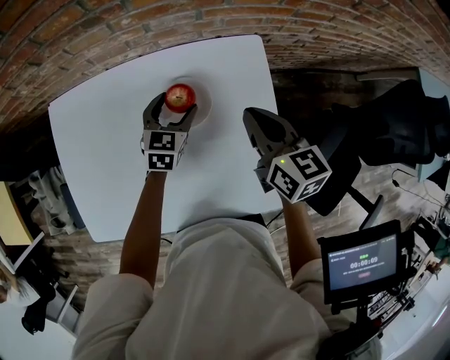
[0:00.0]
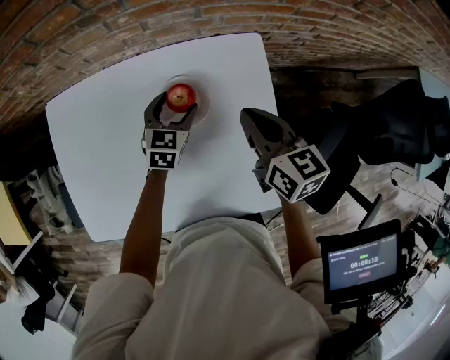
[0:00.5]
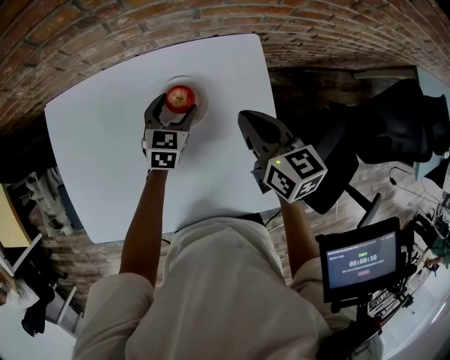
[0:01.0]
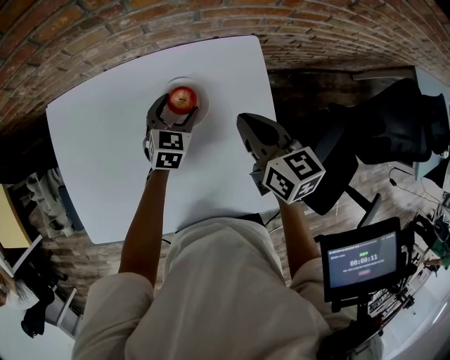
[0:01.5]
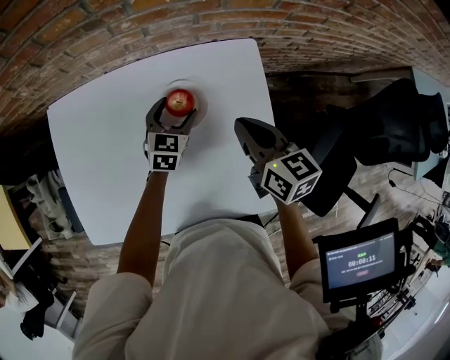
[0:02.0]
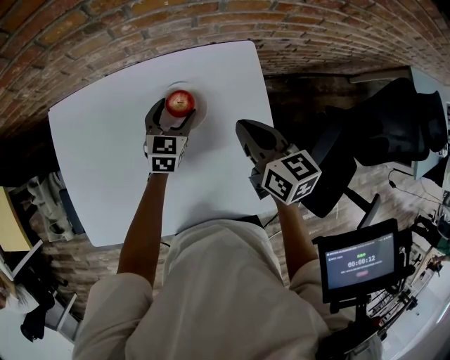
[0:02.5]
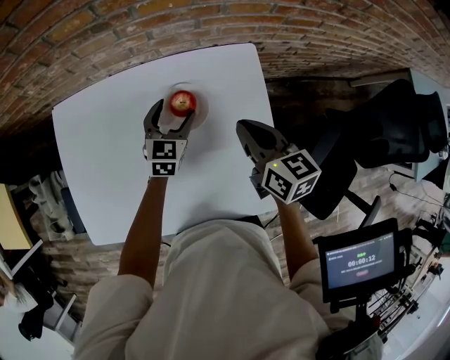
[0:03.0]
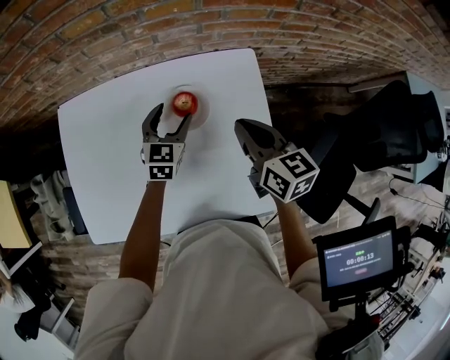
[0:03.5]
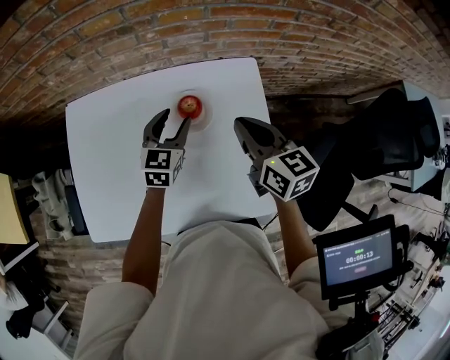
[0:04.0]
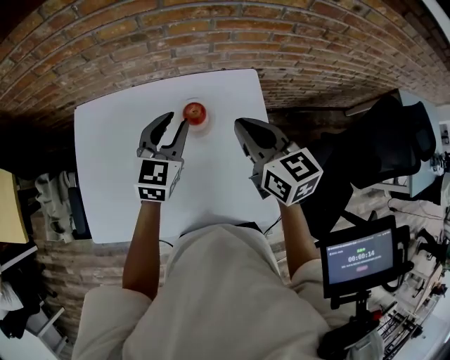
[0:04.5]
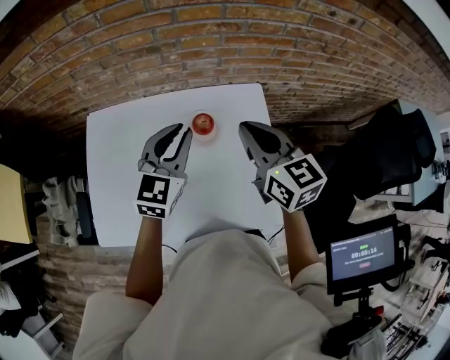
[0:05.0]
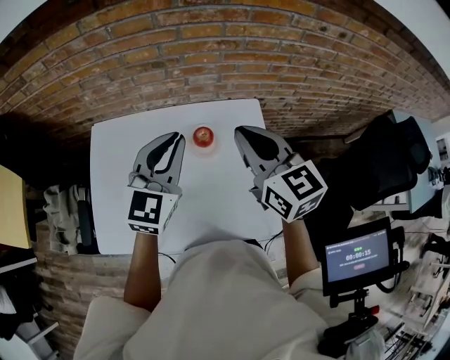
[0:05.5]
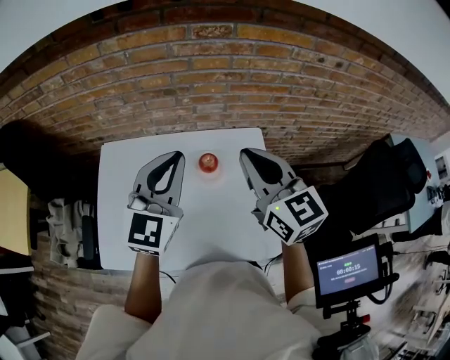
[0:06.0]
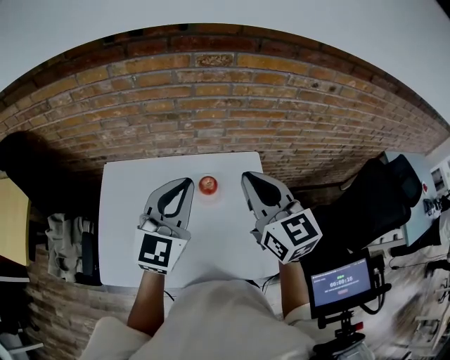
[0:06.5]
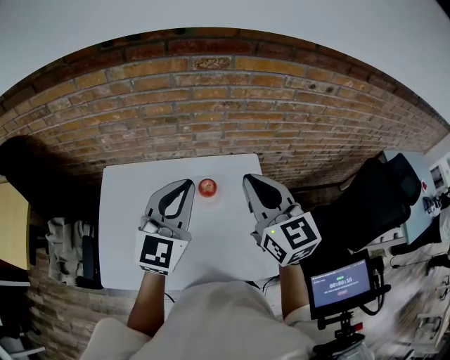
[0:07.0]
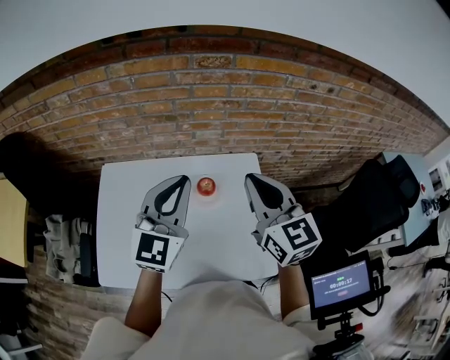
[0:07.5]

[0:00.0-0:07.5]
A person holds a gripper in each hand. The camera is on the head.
0:00.0 to 0:02.0: The grippers make only small movements.
0:02.0 to 0:04.0: The right gripper is displaced upward by approximately 5 cm. The left gripper is displaced upward by approximately 10 cm, and closes.
0:04.0 to 0:05.5: The two grippers go roughly 20 cm upward. The left gripper changes its angle by about 20 degrees, and closes its fingers.
0:05.5 to 0:07.5: The left gripper goes about 5 cm upward.

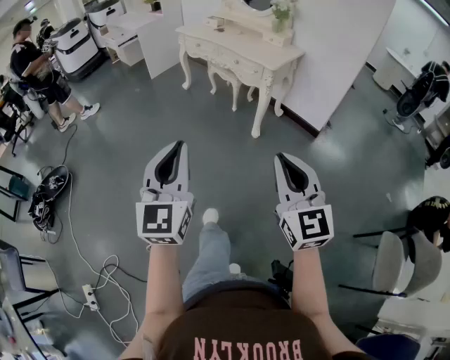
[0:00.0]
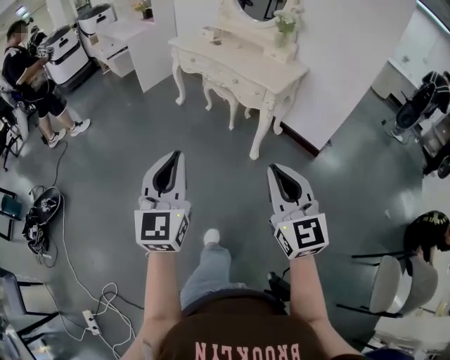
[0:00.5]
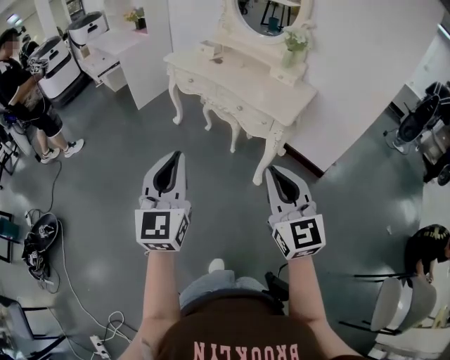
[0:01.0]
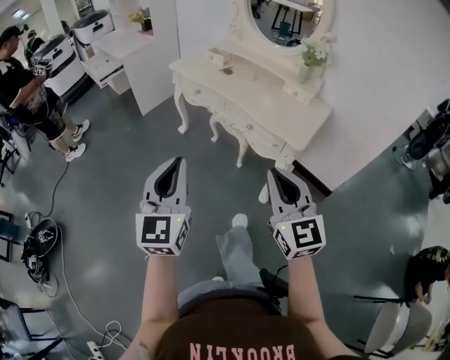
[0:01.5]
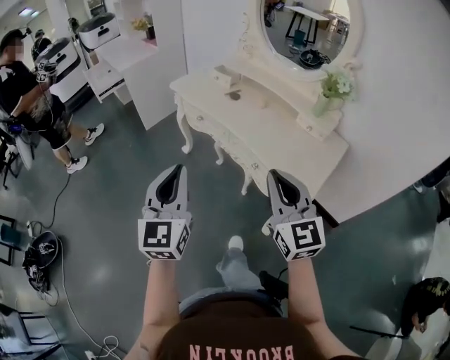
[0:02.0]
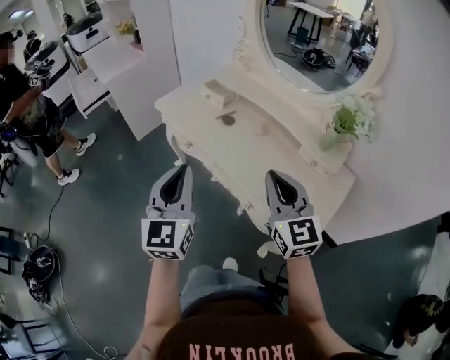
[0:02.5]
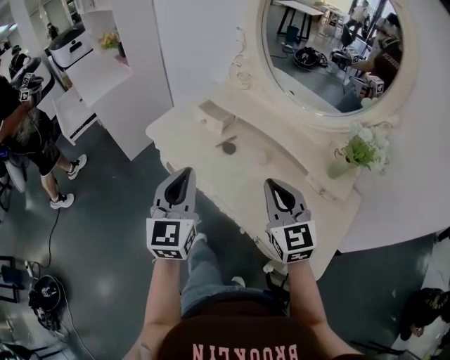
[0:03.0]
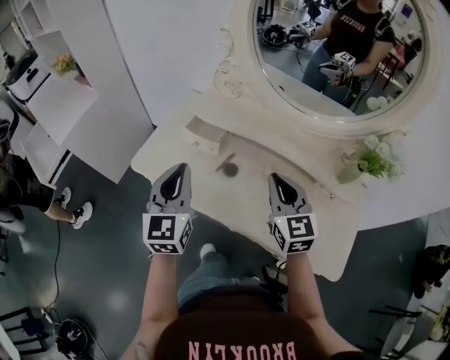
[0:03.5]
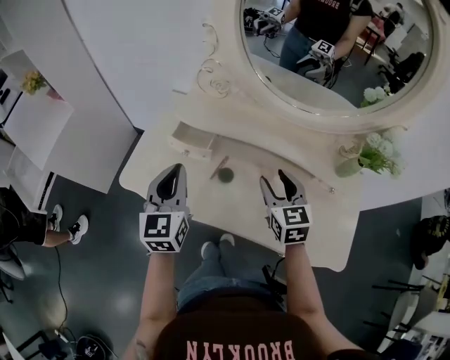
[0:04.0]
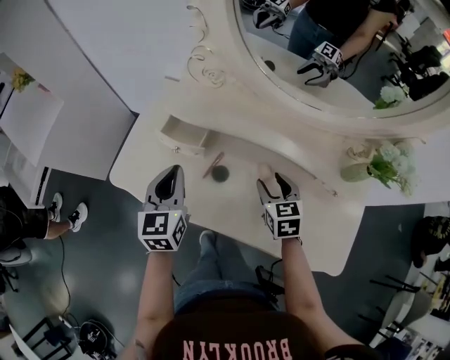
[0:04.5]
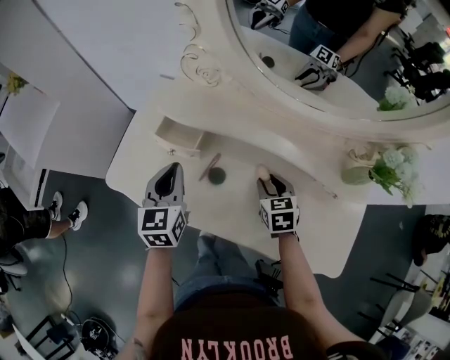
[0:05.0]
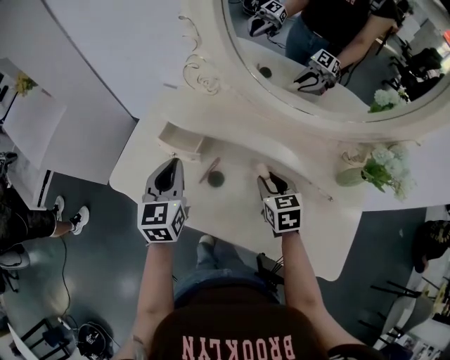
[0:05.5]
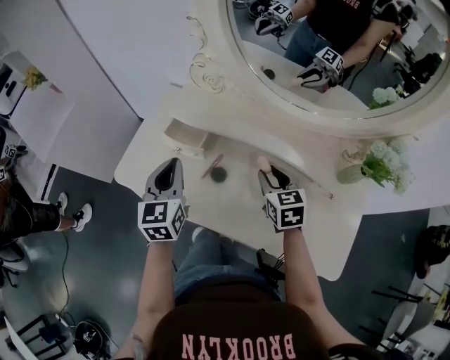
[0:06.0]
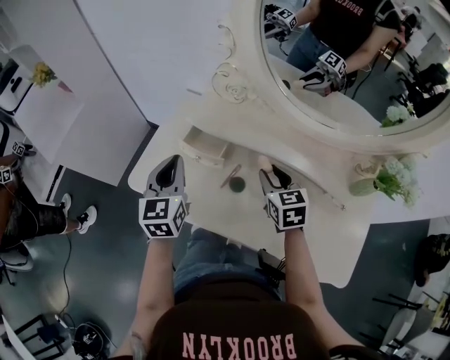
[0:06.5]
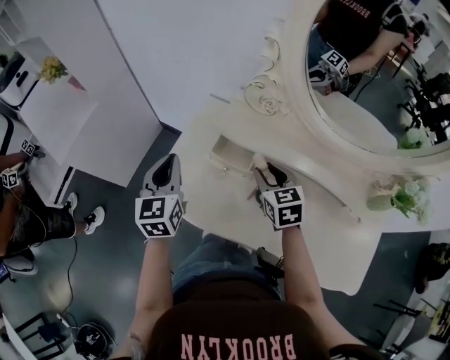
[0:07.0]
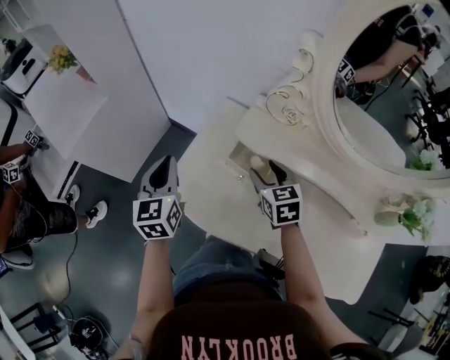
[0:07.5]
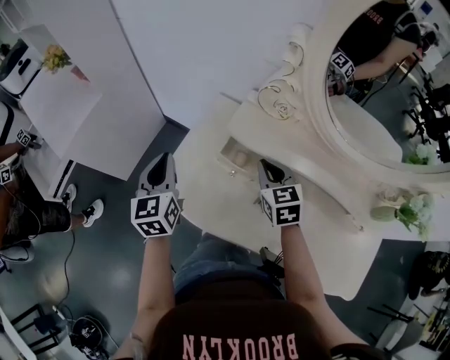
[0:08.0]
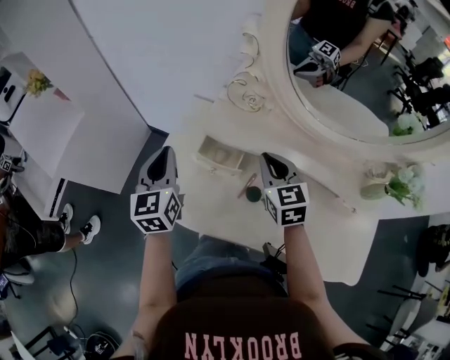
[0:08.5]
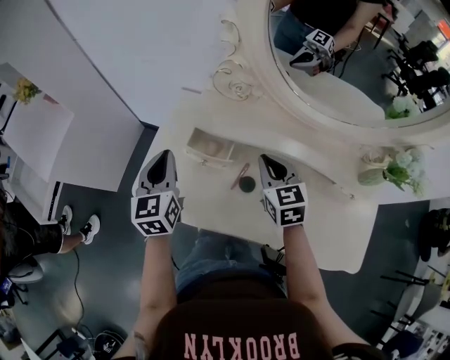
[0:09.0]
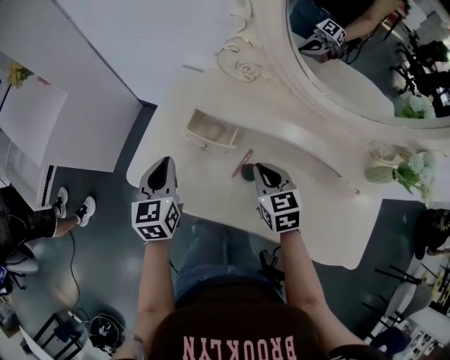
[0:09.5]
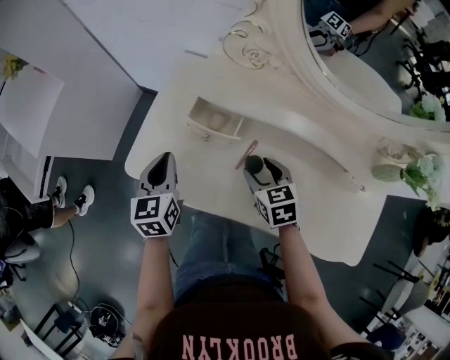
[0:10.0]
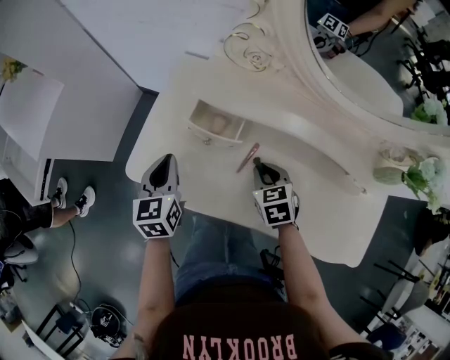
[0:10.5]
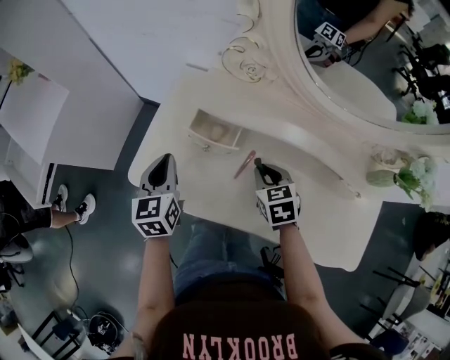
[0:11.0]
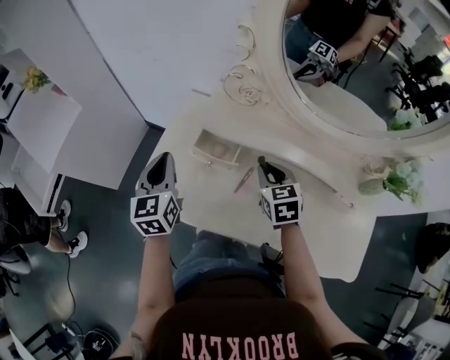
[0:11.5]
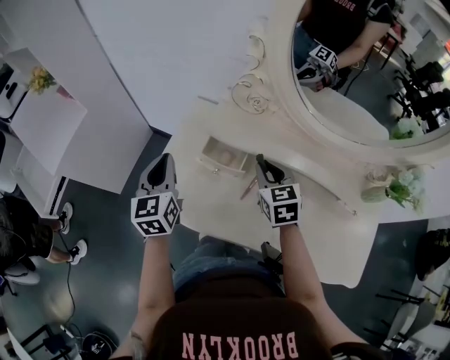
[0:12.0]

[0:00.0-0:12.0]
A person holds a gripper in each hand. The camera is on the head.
0:00.0 to 0:02.0: Both grippers are carried forward, some 70 cm.
0:02.0 to 0:04.0: Both grippers are carried some 60 cm. The right gripper swivels some 40 degrees, and opens up. The left gripper changes its angle by some 30 degrees.
0:04.0 to 0:06.0: The right gripper is displaced downward by approximately 5 cm.
0:06.0 to 0:08.0: Both grippers move to the left and forward, some 25 cm. The right gripper closes up.
0:08.0 to 0:10.0: The right gripper moves backward, downward and to the right, approximately 15 cm, and opens its fingers. Meanwhile the left gripper is displaced downward, to the right and backward by about 15 cm.
0:10.0 to 0:12.0: The two grippers go about 10 cm upward and forward. The right gripper closes up.

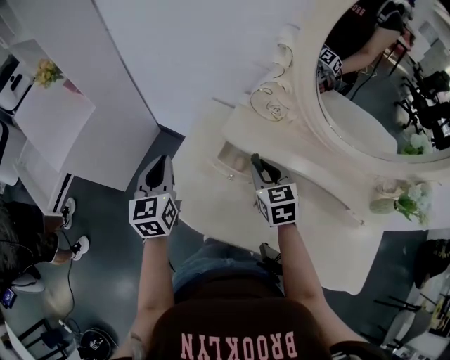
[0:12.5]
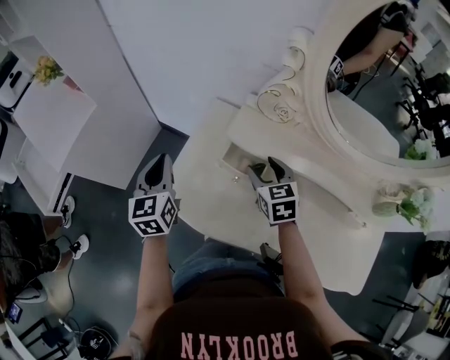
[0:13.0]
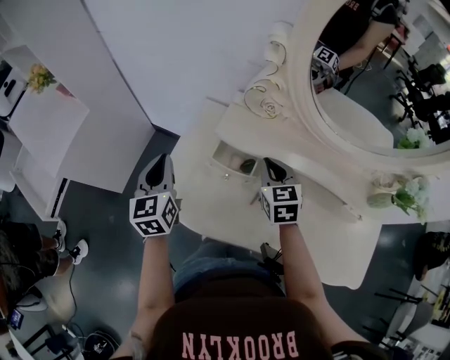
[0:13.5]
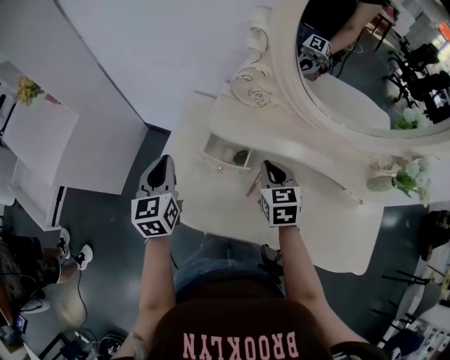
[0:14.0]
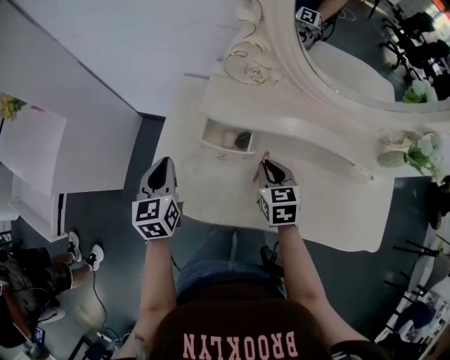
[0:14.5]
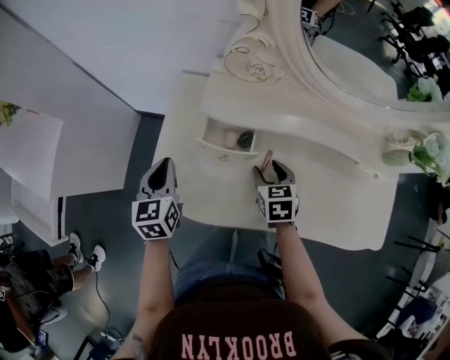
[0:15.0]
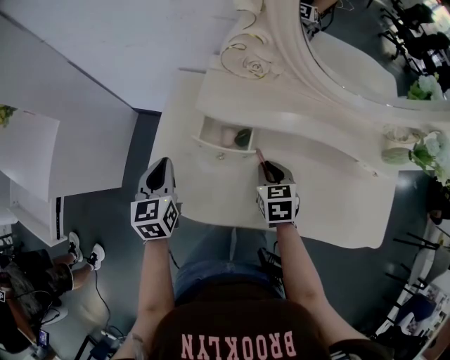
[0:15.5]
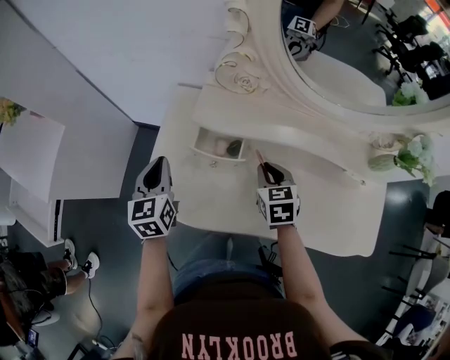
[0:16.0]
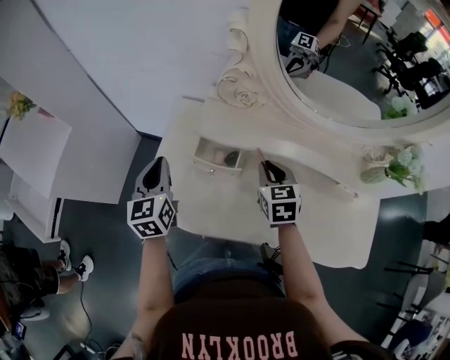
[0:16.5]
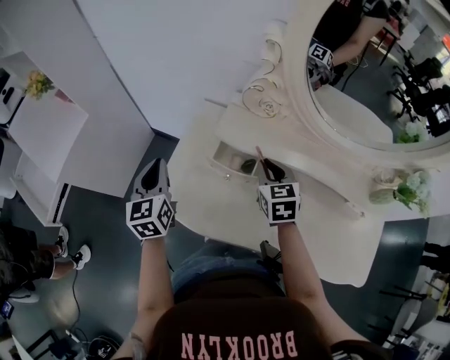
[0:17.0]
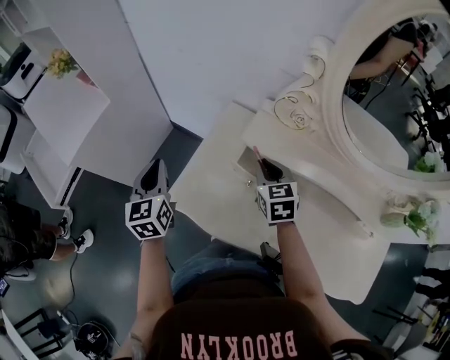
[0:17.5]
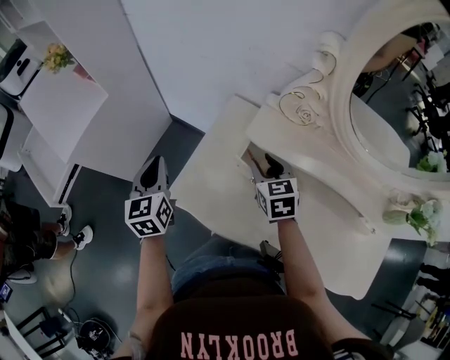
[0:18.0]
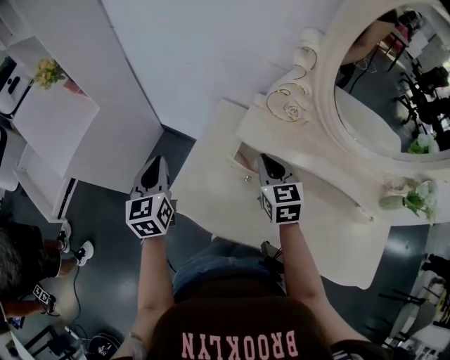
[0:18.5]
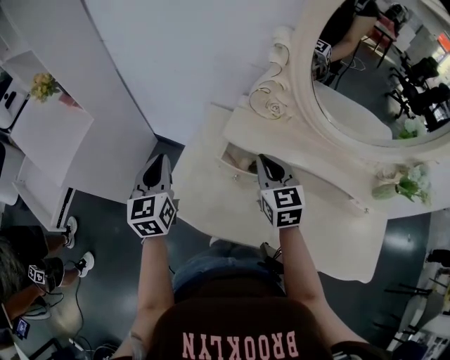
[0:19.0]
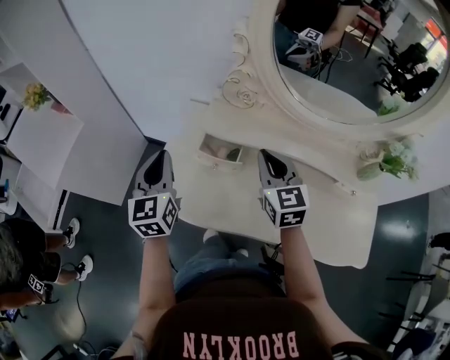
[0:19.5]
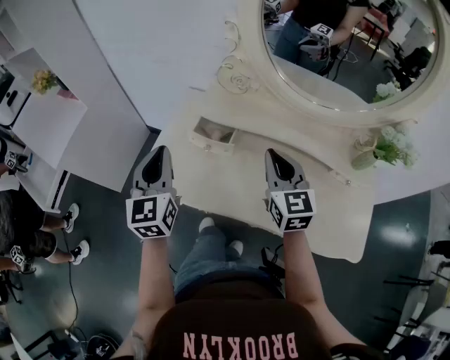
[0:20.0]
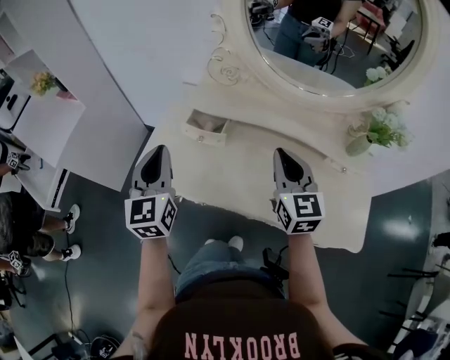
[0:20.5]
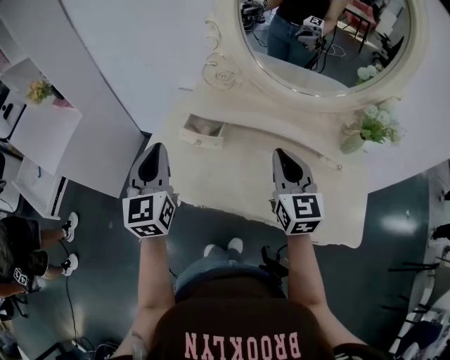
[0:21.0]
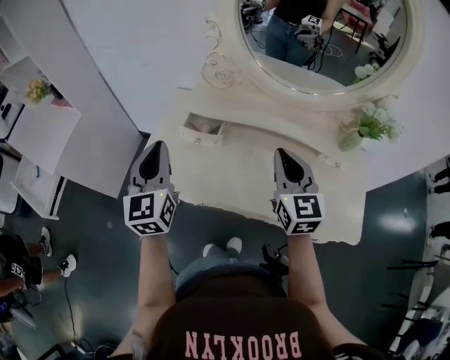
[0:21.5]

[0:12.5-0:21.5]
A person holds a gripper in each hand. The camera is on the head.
0:12.5 to 0:14.5: The left gripper is displaced downward by approximately 10 cm. The right gripper heads downward and backward, covering about 10 cm, swivels some 20 degrees, and opens, then closes once more.
0:14.5 to 0:17.0: The right gripper heads upward and forward, covering approximately 10 cm, and opens, then closes once more, while the left gripper is displaced upward by some 5 cm.
0:17.0 to 0:19.5: The right gripper moves upward and backward, about 10 cm, and opens, then closes again; the left gripper is displaced upward and to the right by some 10 cm.
0:19.5 to 0:21.5: The left gripper is displaced backward, upward and to the right by roughly 15 cm. The right gripper is displaced backward and to the right by roughly 15 cm.
